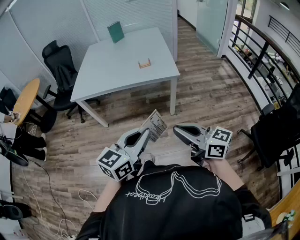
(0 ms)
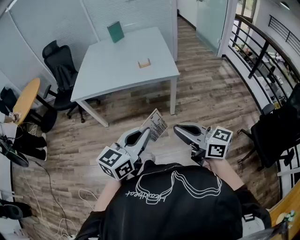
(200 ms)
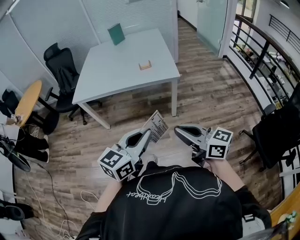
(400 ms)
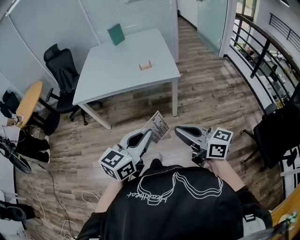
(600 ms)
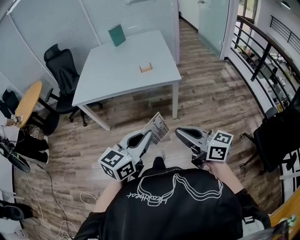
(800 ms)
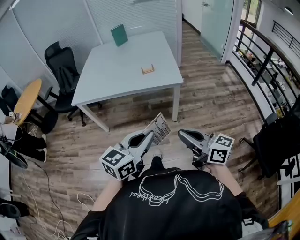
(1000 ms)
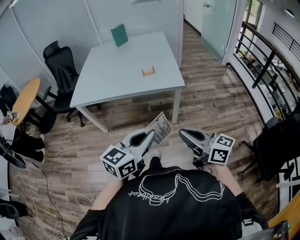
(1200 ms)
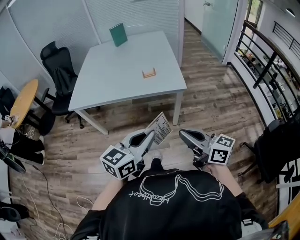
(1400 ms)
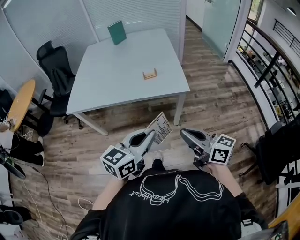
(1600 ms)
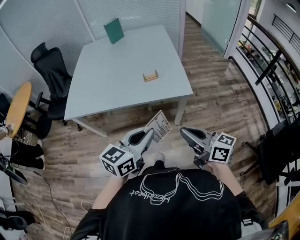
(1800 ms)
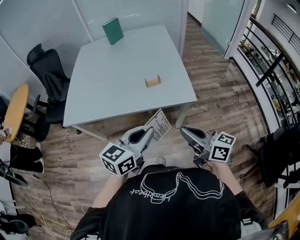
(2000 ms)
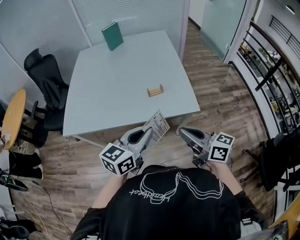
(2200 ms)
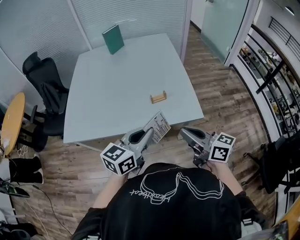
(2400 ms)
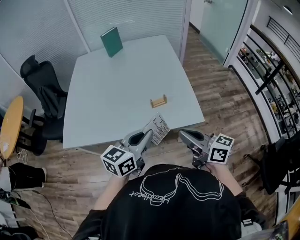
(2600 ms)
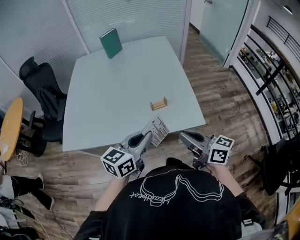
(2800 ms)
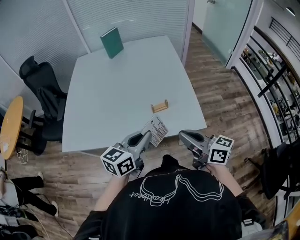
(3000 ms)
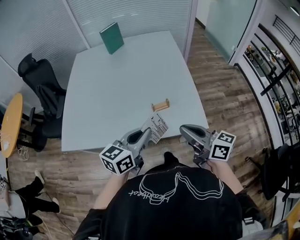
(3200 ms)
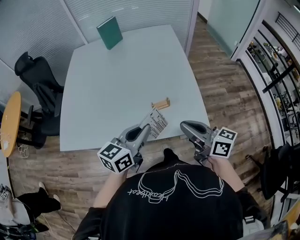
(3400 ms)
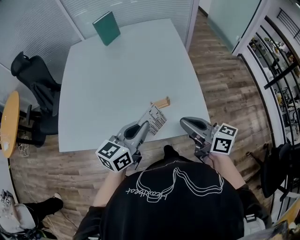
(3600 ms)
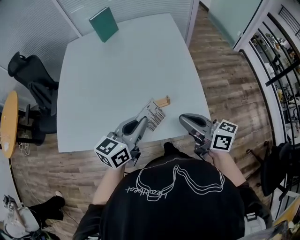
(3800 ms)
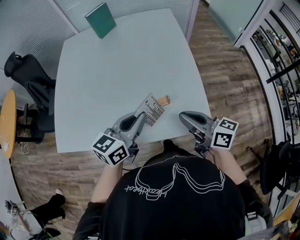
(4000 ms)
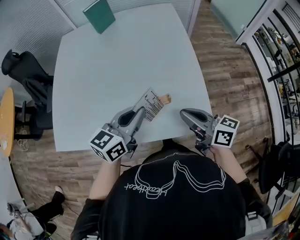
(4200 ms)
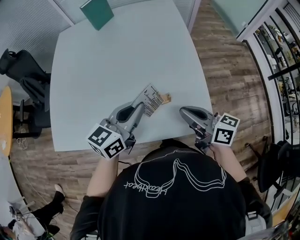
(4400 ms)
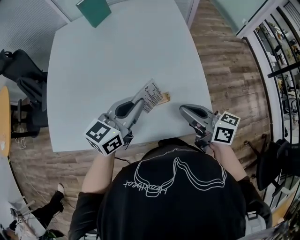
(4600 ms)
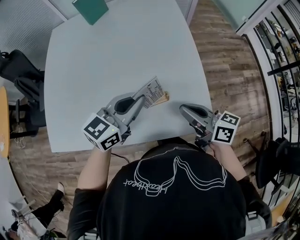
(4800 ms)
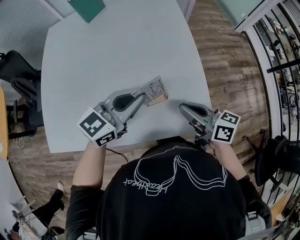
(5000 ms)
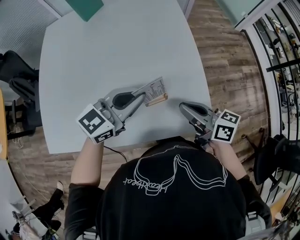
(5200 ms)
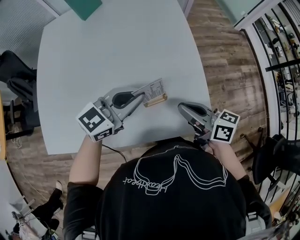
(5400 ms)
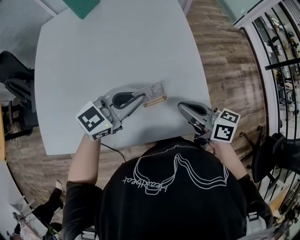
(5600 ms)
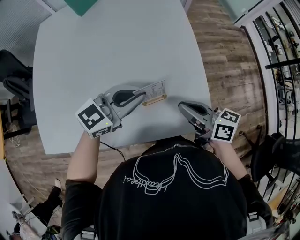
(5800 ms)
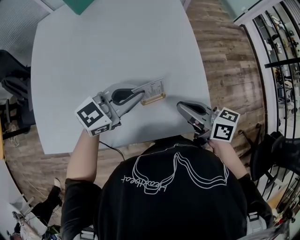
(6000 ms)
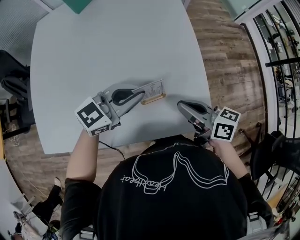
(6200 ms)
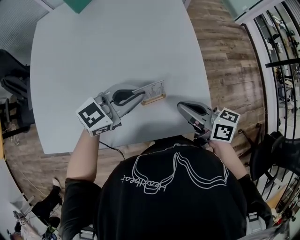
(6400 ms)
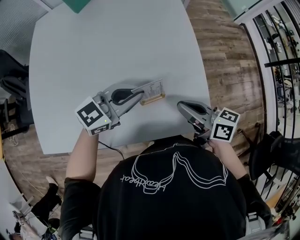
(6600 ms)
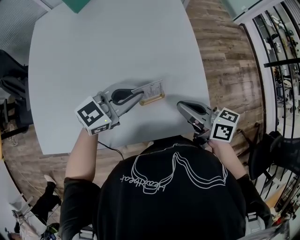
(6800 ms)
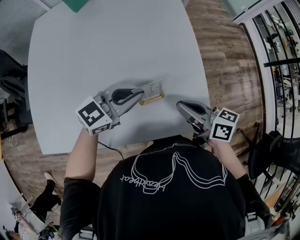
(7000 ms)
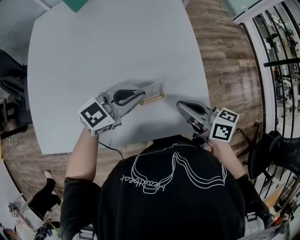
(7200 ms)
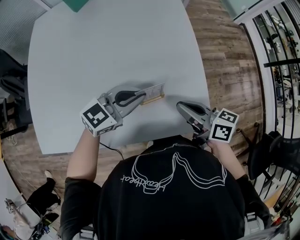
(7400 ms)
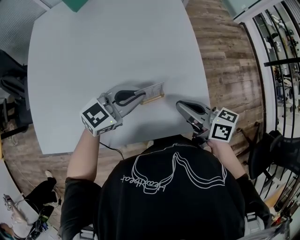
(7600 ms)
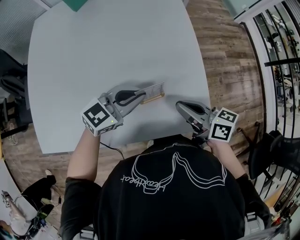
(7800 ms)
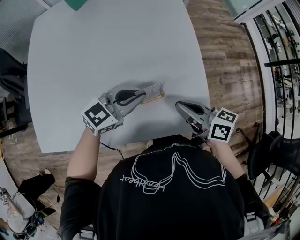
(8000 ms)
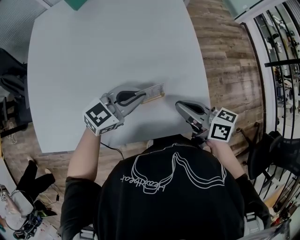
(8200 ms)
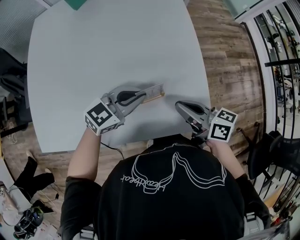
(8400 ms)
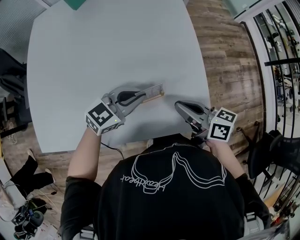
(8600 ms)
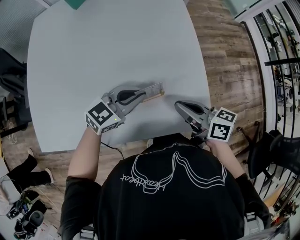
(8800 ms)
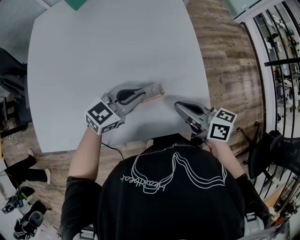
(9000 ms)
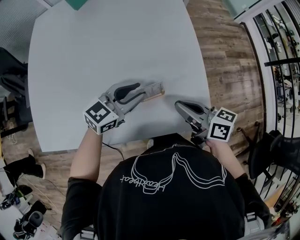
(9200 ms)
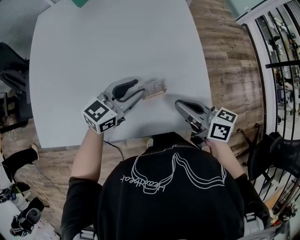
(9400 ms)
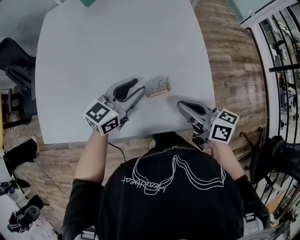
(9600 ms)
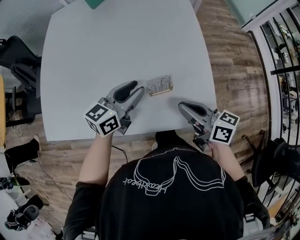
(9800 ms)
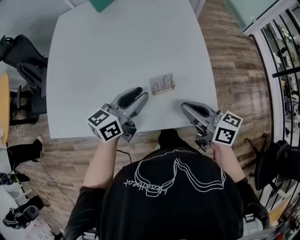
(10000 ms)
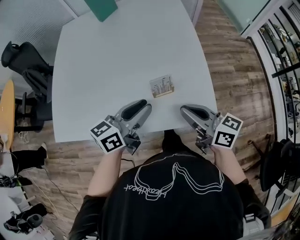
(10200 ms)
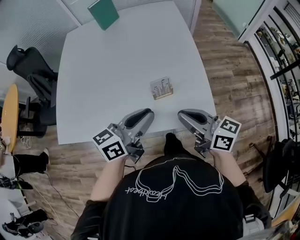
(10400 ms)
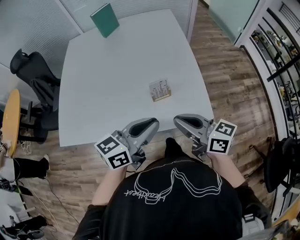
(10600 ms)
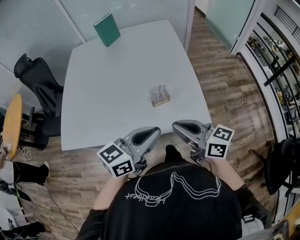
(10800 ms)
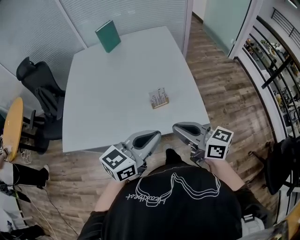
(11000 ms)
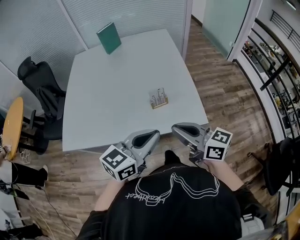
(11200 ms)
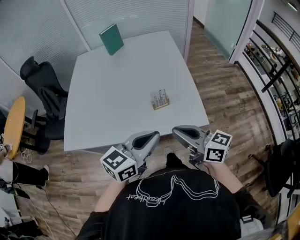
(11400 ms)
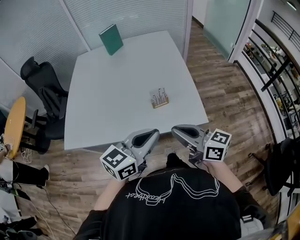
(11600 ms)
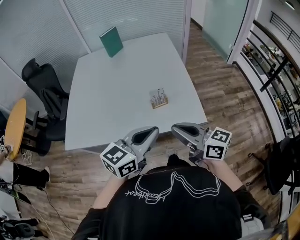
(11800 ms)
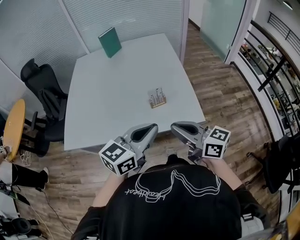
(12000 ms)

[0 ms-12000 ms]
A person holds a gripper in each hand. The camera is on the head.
0 ms to 1600 ms: Both grippers move forward, about 20 cm.
1600 ms to 3000 ms: The grippers both shift forward by roughly 30 cm.
3000 ms to 4400 ms: The left gripper is displaced forward by approximately 20 cm. The right gripper moves forward and downward, approximately 20 cm.
4400 ms to 6000 ms: The right gripper shifts some 5 cm downward, while the left gripper moves forward and downward, about 10 cm, and rotates about 30 degrees.
6000 ms to 7600 ms: There are only small adjustments of the grippers.
7600 ms to 9000 ms: There are only small adjustments of the grippers.
9000 ms to 10400 ms: The right gripper shifts about 15 cm upward and backward. The left gripper is displaced backward and upward by roughly 20 cm, and turns by approximately 40 degrees.
10400 ms to 12000 ms: Both grippers travel together backward and upward, some 15 cm. The left gripper turns by approximately 20 degrees.

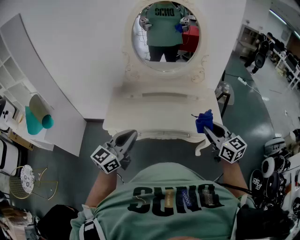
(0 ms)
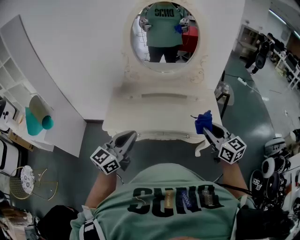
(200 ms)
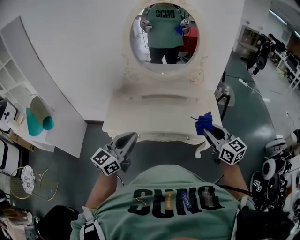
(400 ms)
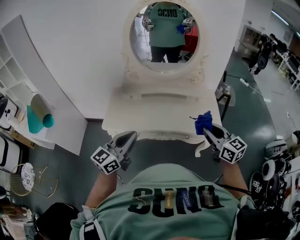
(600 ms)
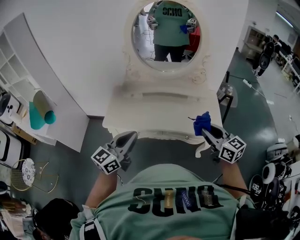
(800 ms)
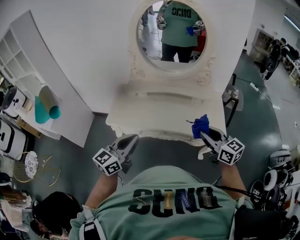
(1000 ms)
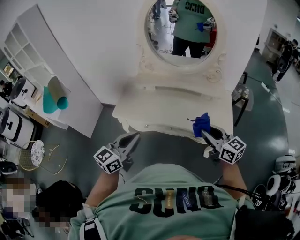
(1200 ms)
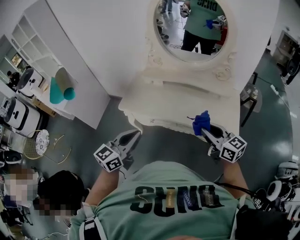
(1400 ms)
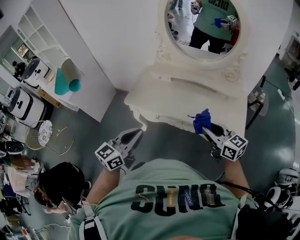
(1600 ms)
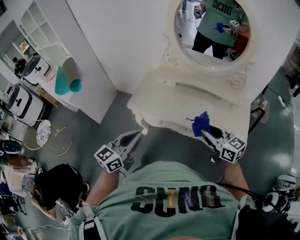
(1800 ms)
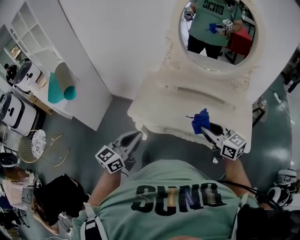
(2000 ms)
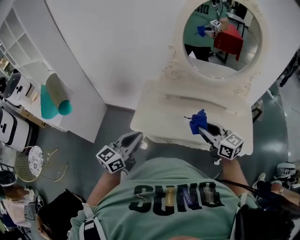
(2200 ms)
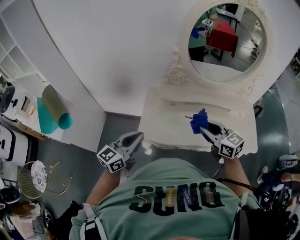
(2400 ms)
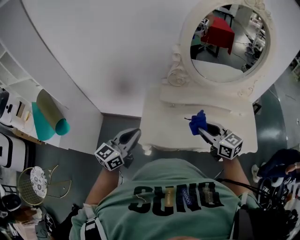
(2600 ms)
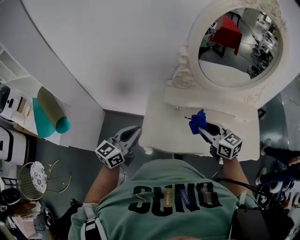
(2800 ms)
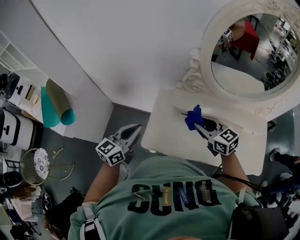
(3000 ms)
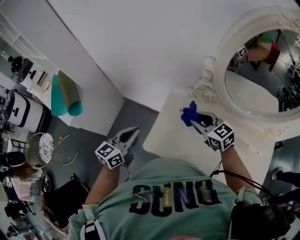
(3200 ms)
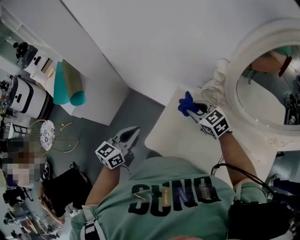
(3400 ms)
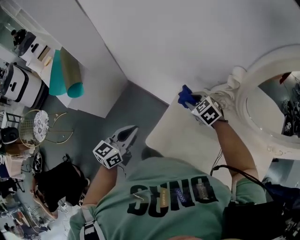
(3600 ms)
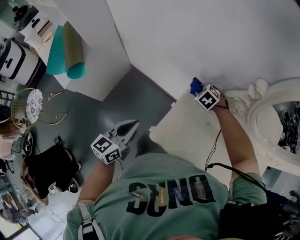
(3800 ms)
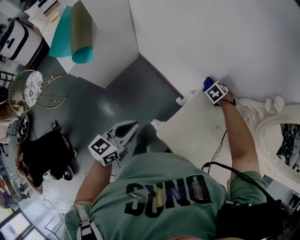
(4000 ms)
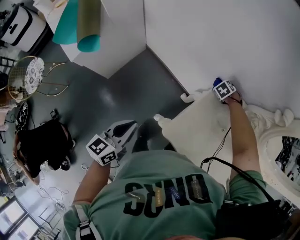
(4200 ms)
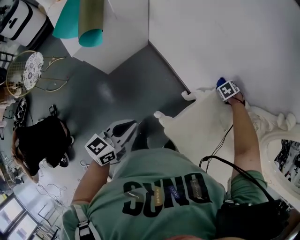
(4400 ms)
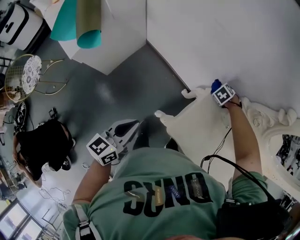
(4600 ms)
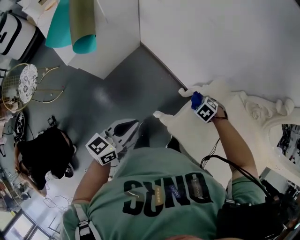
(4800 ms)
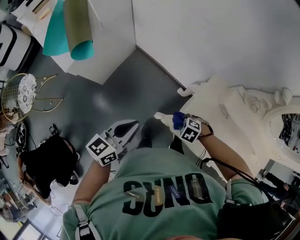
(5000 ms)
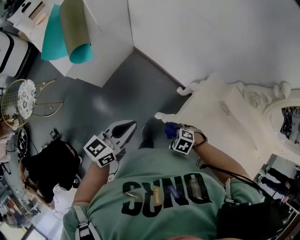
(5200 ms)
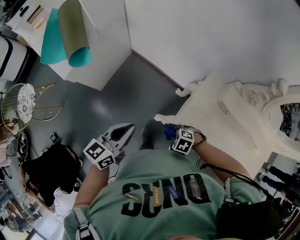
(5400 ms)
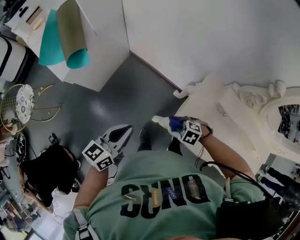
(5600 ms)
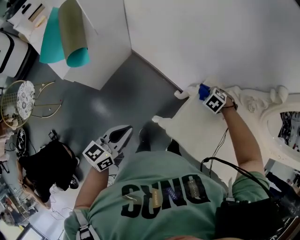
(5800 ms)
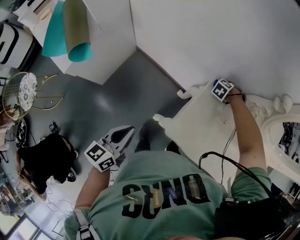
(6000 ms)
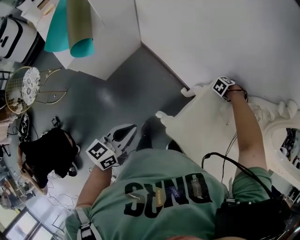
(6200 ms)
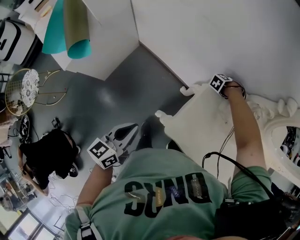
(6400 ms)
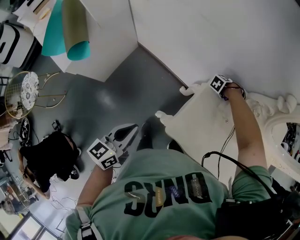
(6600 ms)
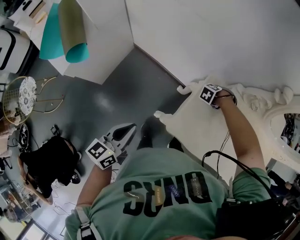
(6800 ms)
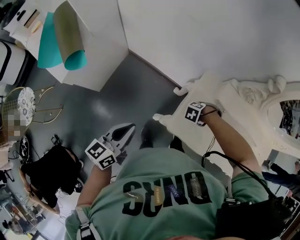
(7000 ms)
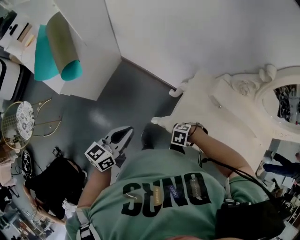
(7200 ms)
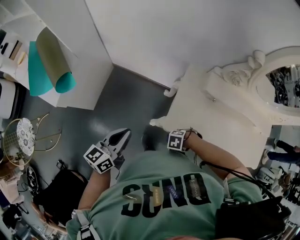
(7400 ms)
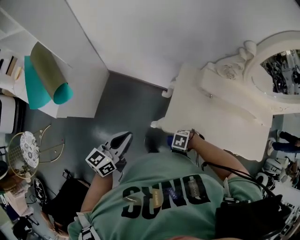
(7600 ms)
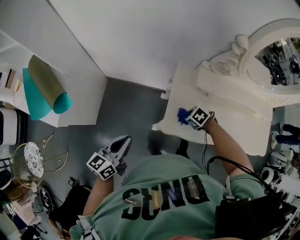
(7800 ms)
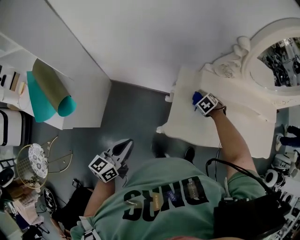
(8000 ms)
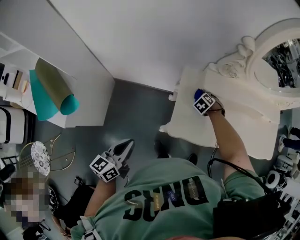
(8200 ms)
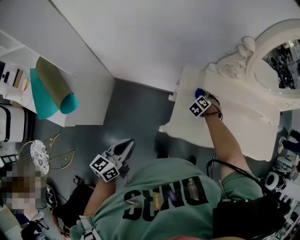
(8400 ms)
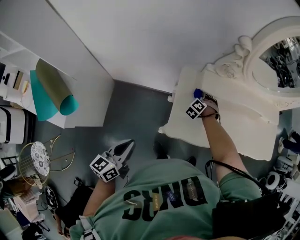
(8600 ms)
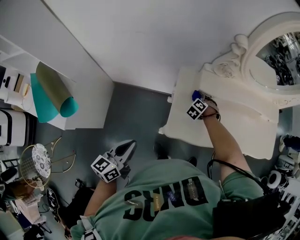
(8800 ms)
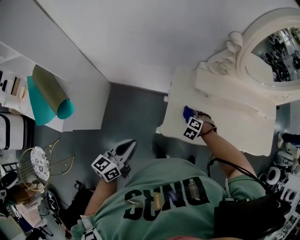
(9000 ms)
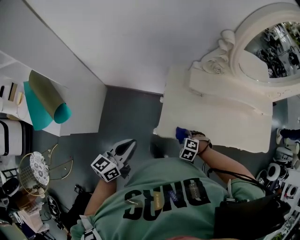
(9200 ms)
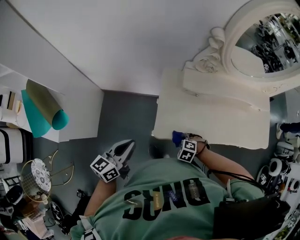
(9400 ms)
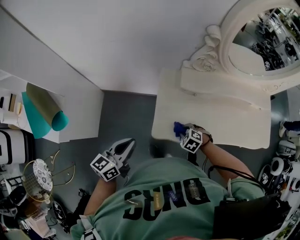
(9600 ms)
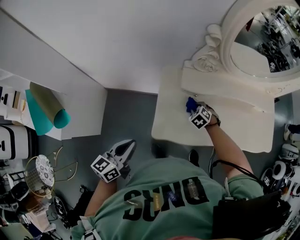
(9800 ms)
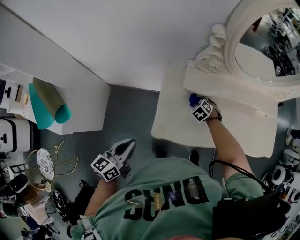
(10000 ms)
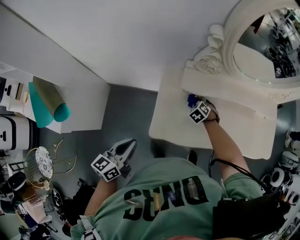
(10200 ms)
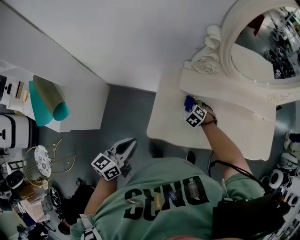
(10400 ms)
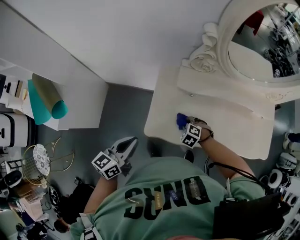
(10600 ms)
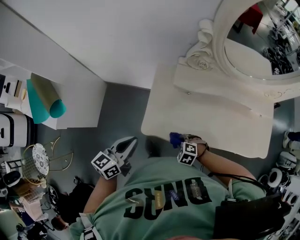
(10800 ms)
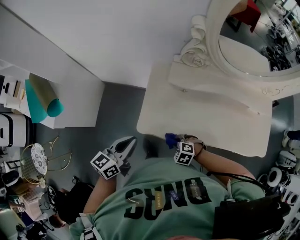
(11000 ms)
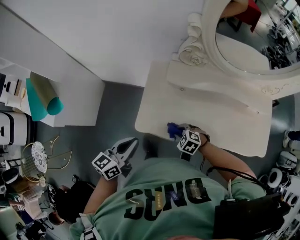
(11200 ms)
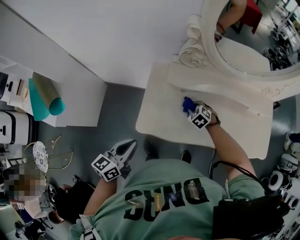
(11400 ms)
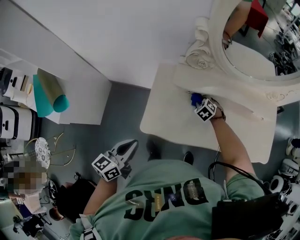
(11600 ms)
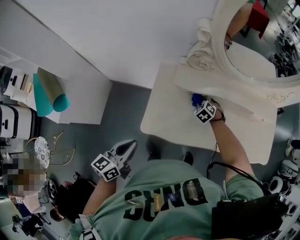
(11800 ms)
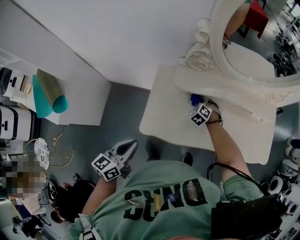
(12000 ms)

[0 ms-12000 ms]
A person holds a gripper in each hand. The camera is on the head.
0 ms to 1600 ms: The right gripper shifts roughly 5 cm downward, and swivels approximately 30 degrees. Meanwhile the left gripper ends up roughly 5 cm from where it was, and swivels approximately 20 degrees.
1600 ms to 3000 ms: The pair of grippers is taken forward and to the left, approximately 40 cm.
3000 ms to 4400 ms: The left gripper shifts by approximately 25 cm, and changes its angle by approximately 30 degrees; the right gripper ends up approximately 50 cm from where it was, and tilts its fingers roughly 60 degrees downward.
6000 ms to 7600 ms: The left gripper turns by some 20 degrees; the right gripper moves some 50 cm, and swivels about 40 degrees.
7600 ms to 9000 ms: The right gripper rotates approximately 40 degrees.
9000 ms to 10400 ms: The left gripper shifts by roughly 10 cm; the right gripper moves approximately 15 cm.
10400 ms to 12000 ms: The left gripper shifts by approximately 5 cm.
